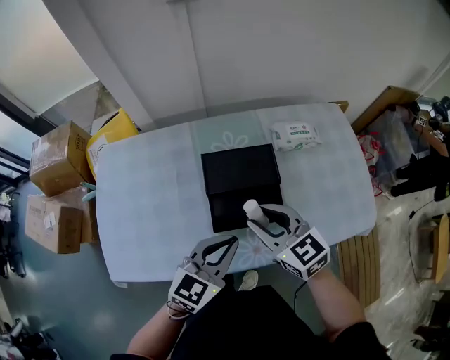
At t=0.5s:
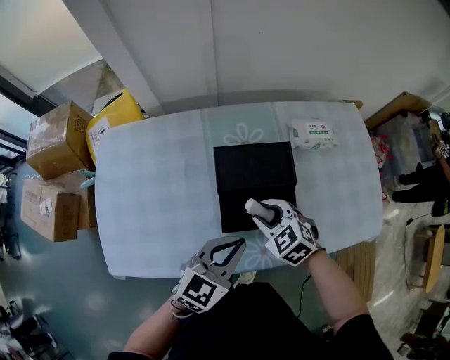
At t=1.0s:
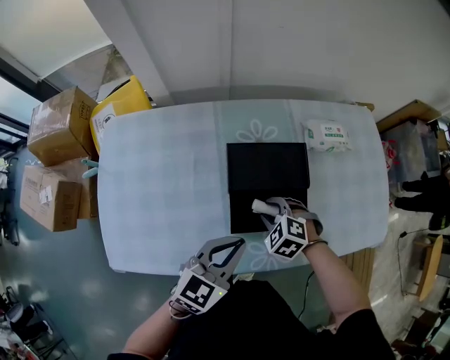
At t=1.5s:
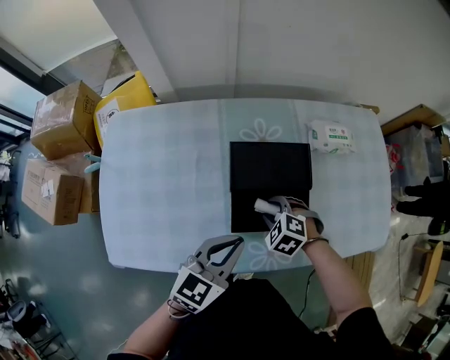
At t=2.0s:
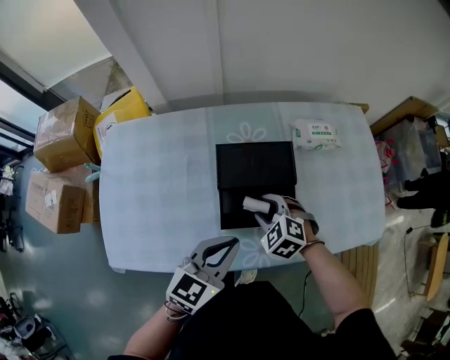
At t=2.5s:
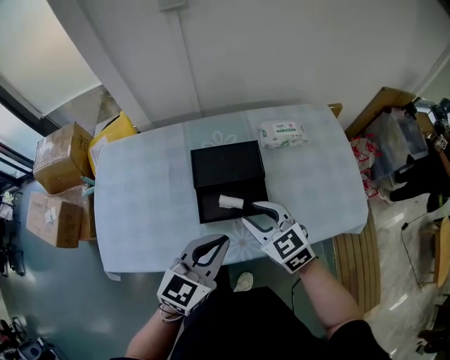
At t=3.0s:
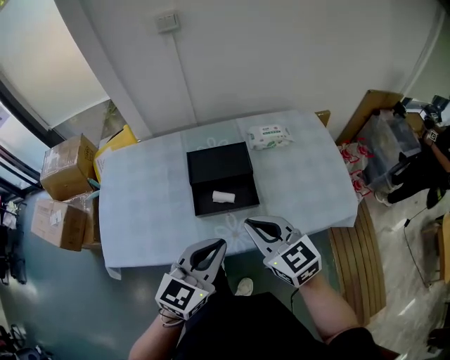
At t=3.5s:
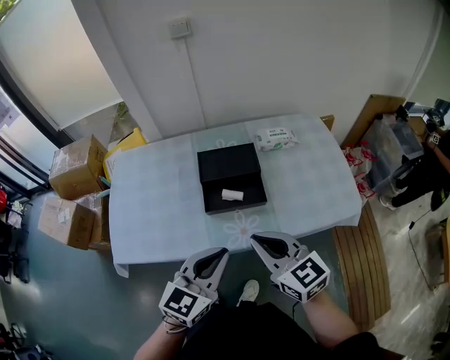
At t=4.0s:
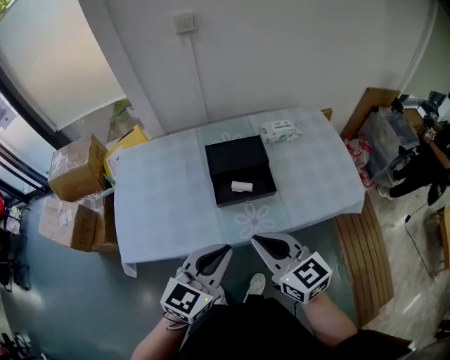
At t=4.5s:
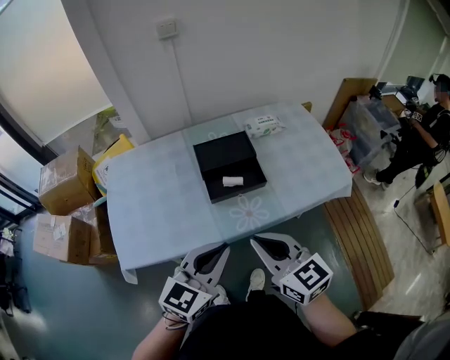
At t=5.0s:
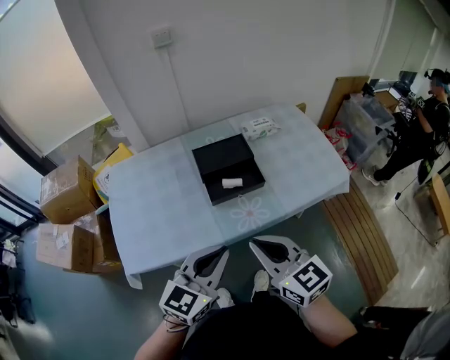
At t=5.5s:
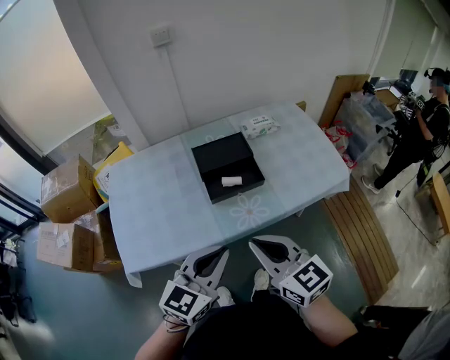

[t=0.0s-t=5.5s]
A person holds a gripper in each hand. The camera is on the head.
t=0.0s to t=2.0s: The right gripper heads downward, covering roughly 15 cm, and points its fingers about 30 degrees further downward.
t=2.0s to t=3.5s: The right gripper travels upward and backward by about 30 cm, tips its fingers upward by approximately 40 degrees, and closes its fingers. The left gripper goes approximately 20 cm backward and upward.
t=3.5s to t=5.5s: The grippers both shift backward and to the left by about 10 cm.

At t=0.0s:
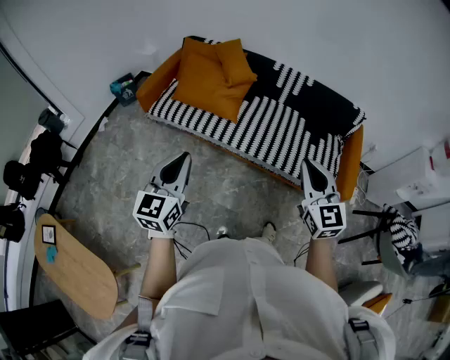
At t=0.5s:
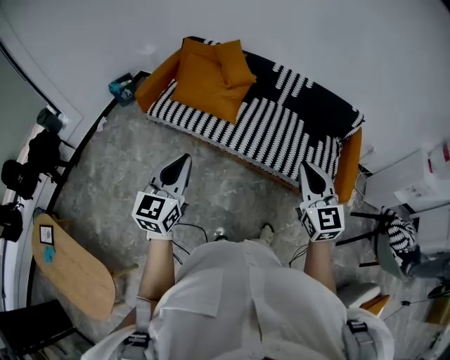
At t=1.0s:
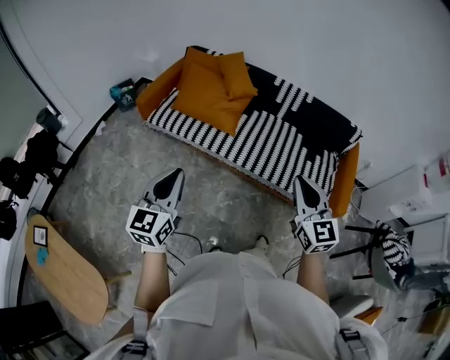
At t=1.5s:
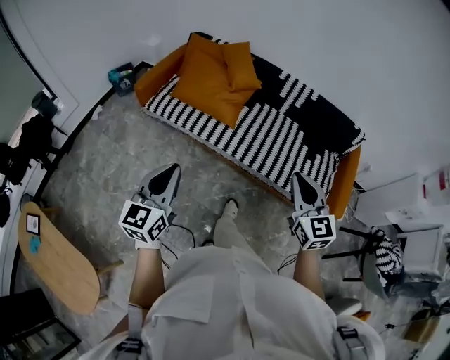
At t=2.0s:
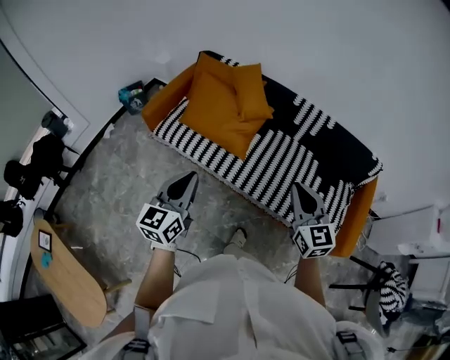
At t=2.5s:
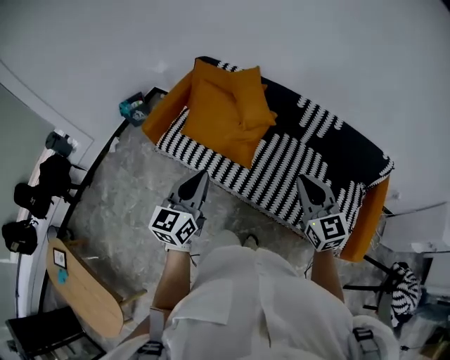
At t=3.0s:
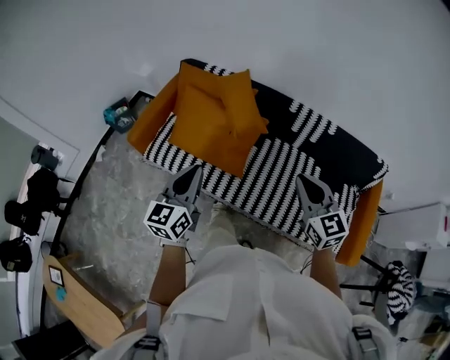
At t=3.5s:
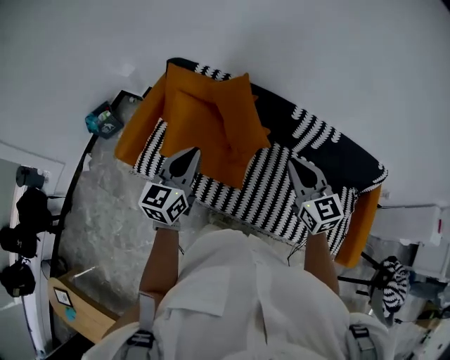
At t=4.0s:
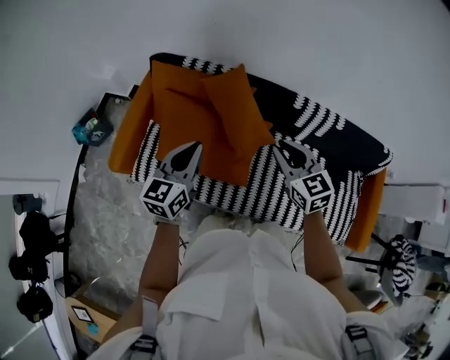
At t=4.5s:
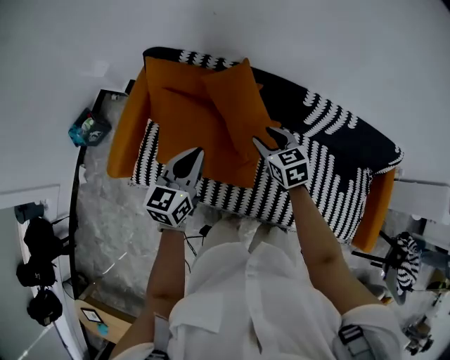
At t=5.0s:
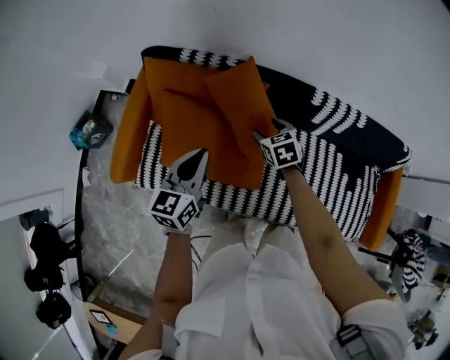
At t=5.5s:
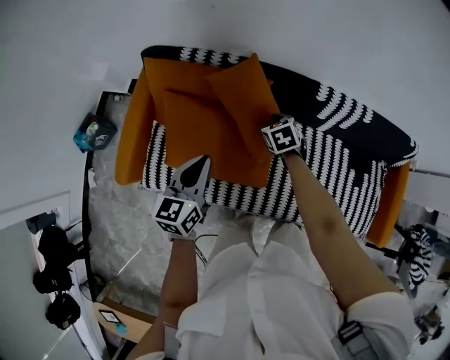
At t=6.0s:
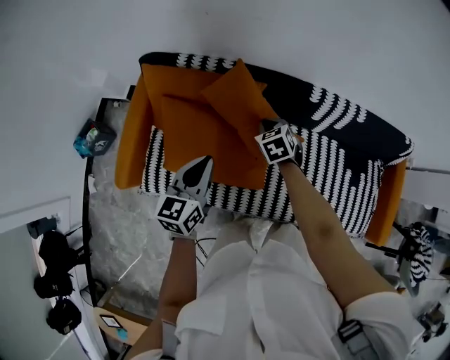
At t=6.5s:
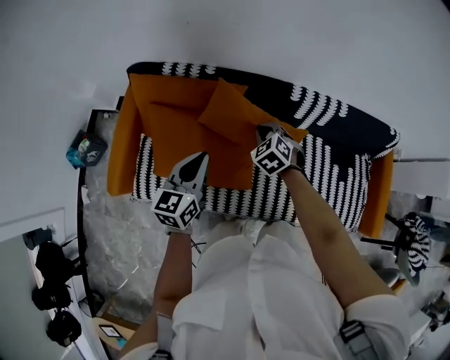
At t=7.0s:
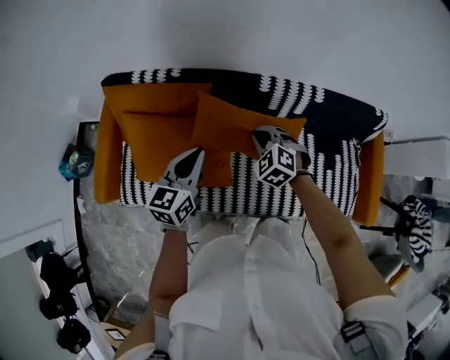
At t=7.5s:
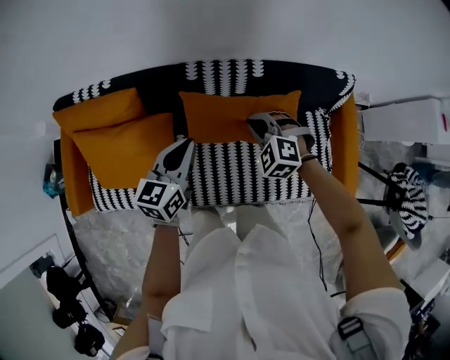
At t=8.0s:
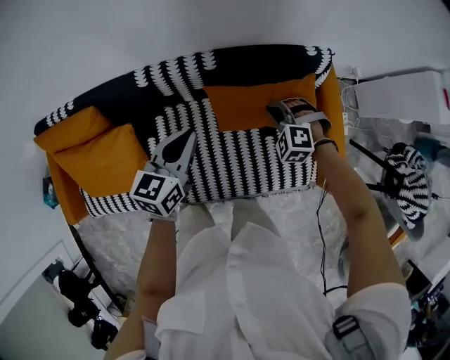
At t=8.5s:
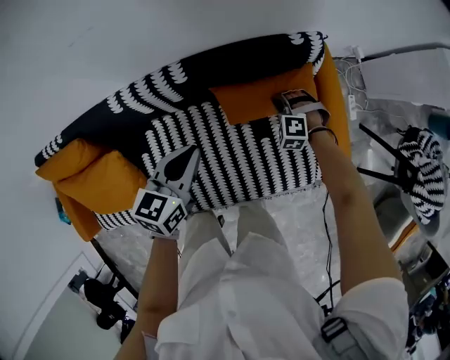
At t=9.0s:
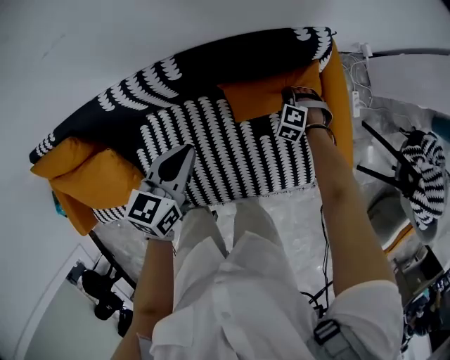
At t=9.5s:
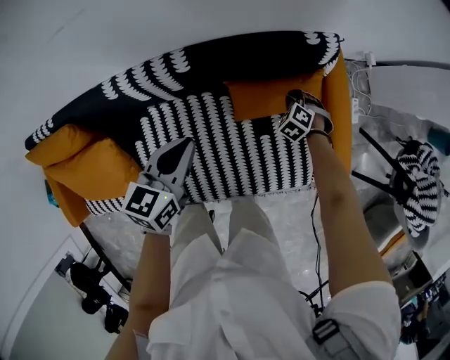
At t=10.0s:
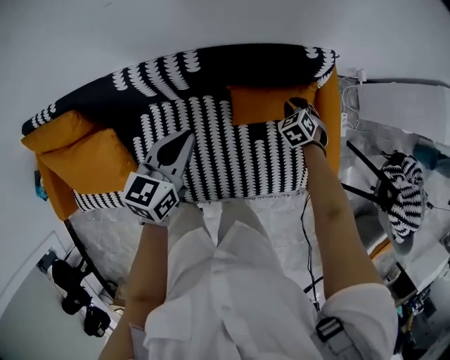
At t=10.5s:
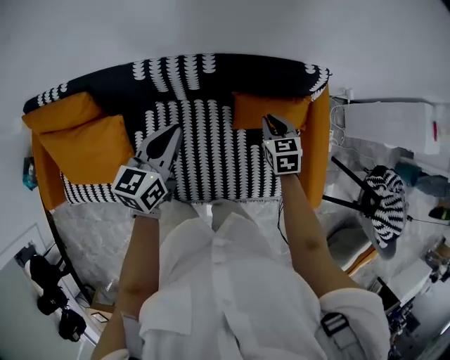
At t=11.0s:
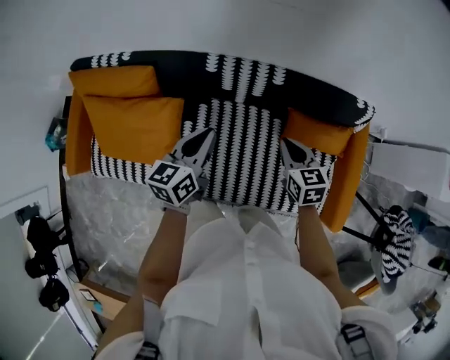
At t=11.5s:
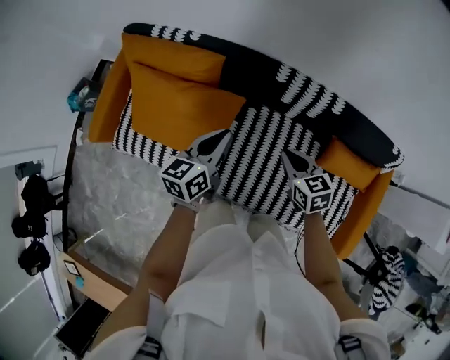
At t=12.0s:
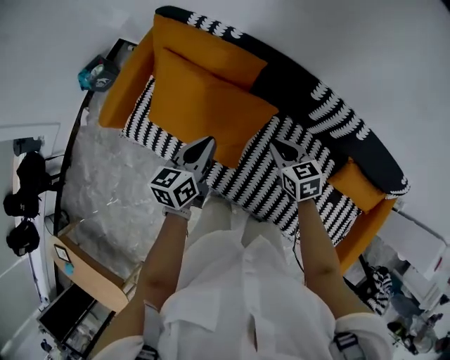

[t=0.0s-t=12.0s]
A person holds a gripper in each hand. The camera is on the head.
t=0.0s to t=2.0s: Both grippers travel together forward, approximately 20 cm.
t=2.0s to t=4.0s: The two grippers travel together, forward, roughly 40 cm.
t=4.0s to t=6.0s: The left gripper moves downward and forward, some 10 cm, while the right gripper shifts about 25 cm downward and forward, tips its fingers downward by approximately 30 degrees, and opens, then closes once more.
t=6.0s to t=8.0s: The pair of grippers is taken to the right, approximately 60 cm. The right gripper rotates around the line of its fingers by some 40 degrees, counterclockwise from behind; the left gripper changes its angle by roughly 20 degrees.
t=8.0s to t=10.0s: The left gripper moves forward, approximately 5 cm. The right gripper is displaced downward, to the right and forward by some 20 cm, and twists approximately 40 degrees clockwise, seen from behind.
t=10.0s to t=12.0s: The two grippers travel together, about 50 cm. The right gripper swivels approximately 50 degrees, while the left gripper changes its angle by approximately 40 degrees.

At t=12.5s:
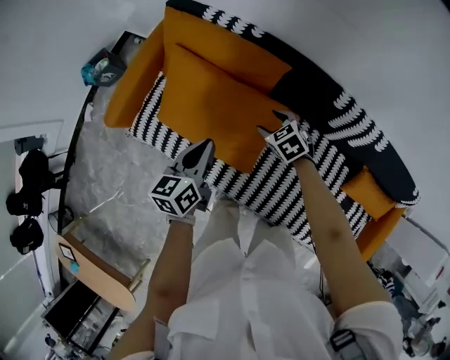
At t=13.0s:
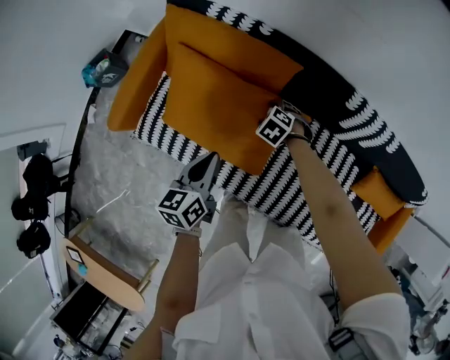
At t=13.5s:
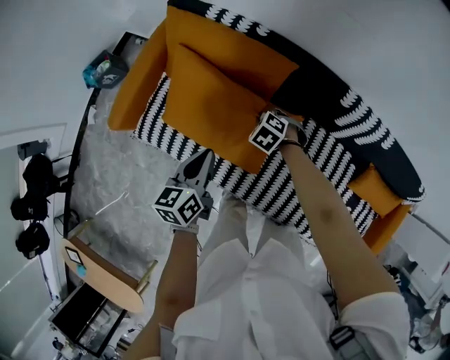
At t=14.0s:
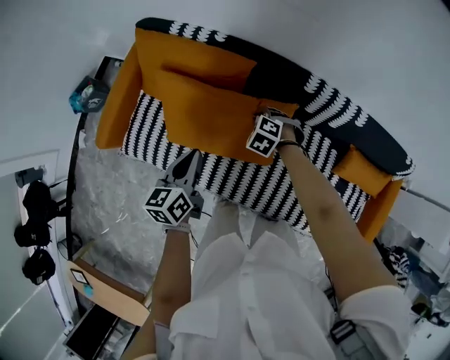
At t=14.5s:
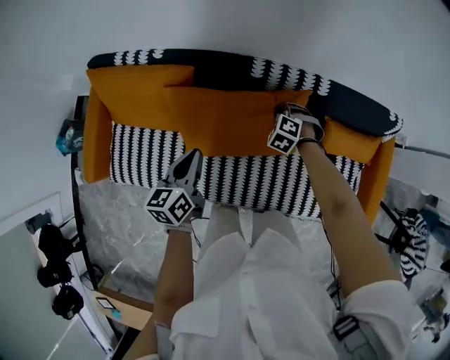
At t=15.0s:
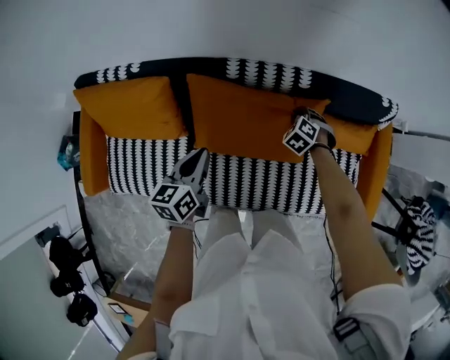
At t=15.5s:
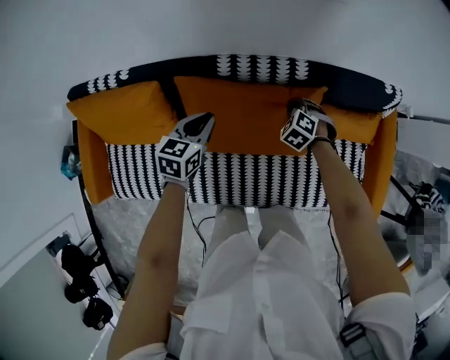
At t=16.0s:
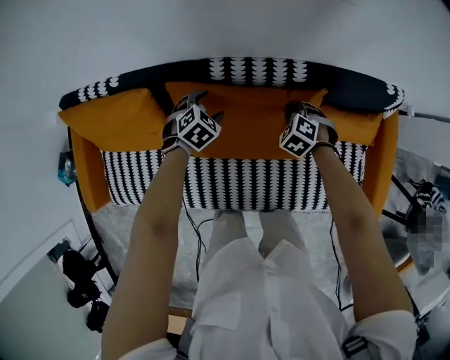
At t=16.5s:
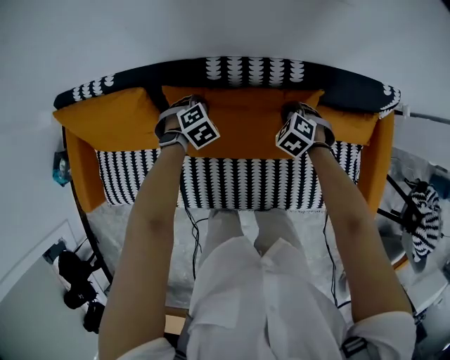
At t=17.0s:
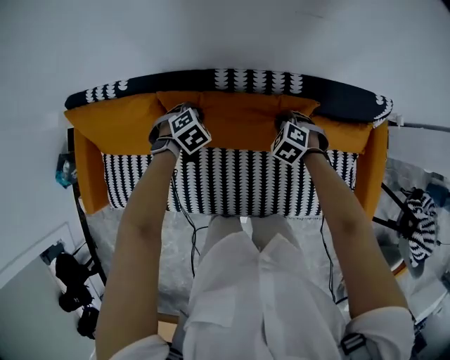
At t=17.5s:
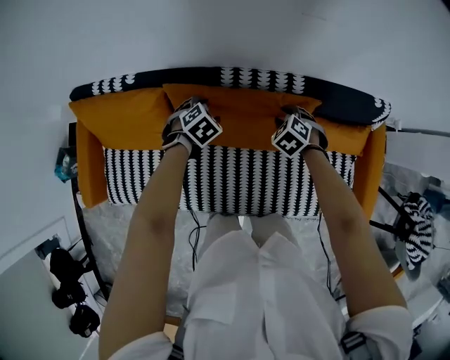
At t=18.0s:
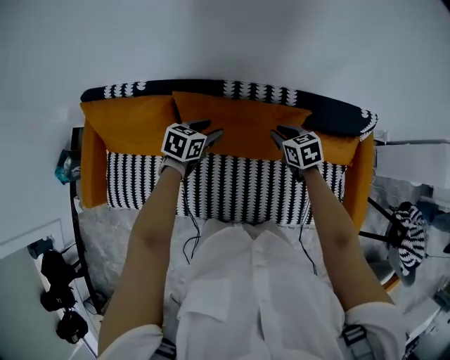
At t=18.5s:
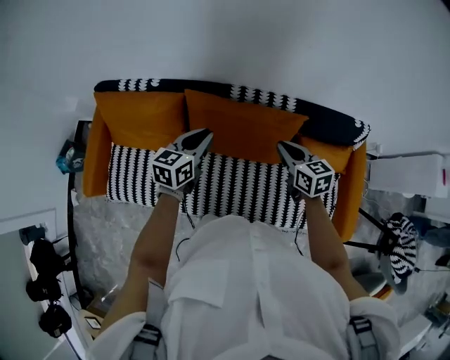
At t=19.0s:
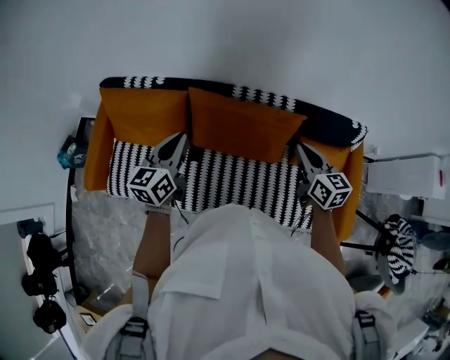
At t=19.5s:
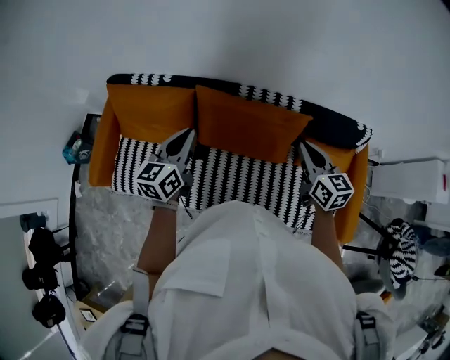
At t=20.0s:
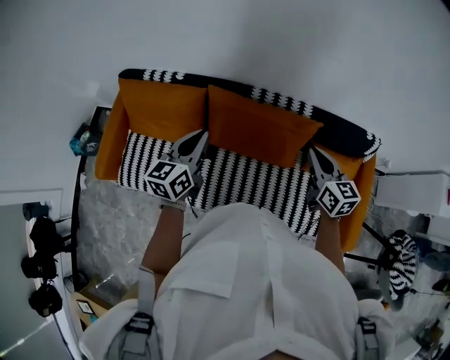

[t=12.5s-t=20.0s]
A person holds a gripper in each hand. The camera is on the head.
t=12.5s to t=14.5s: The left gripper moves roughly 15 cm; the right gripper reaches approximately 10 cm downward, then returns, swivels roughly 30 degrees, and closes up.
t=14.5s to t=16.5s: The left gripper ends up approximately 30 cm from where it was, rotates around the line of its fingers by approximately 80 degrees, clockwise from behind, and opens, then closes again. The right gripper ends up about 15 cm from where it was.
t=16.5s to t=18.0s: Both grippers move upward, about 15 cm. The right gripper rotates some 40 degrees. The left gripper tilts its fingers approximately 30 degrees upward, and opens its fingers.
t=18.0s to t=20.0s: The left gripper travels upward, backward and to the left by approximately 25 cm, tilts its fingers roughly 30 degrees upward, and closes its fingers. Meanwhile the right gripper shifts approximately 20 cm upward and backward, and tips its fingers upward by about 30 degrees.

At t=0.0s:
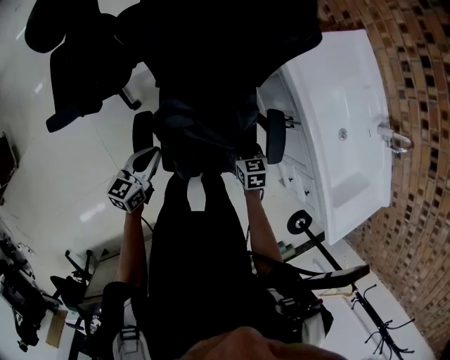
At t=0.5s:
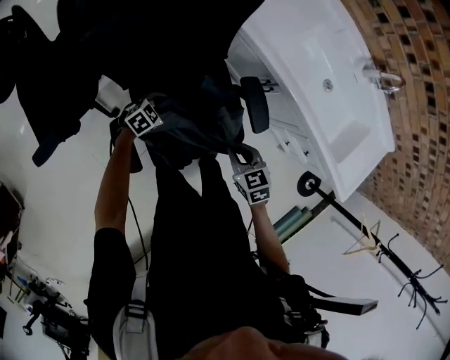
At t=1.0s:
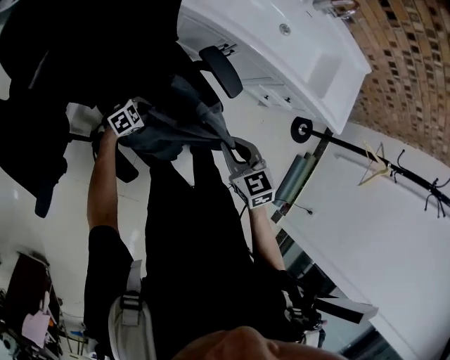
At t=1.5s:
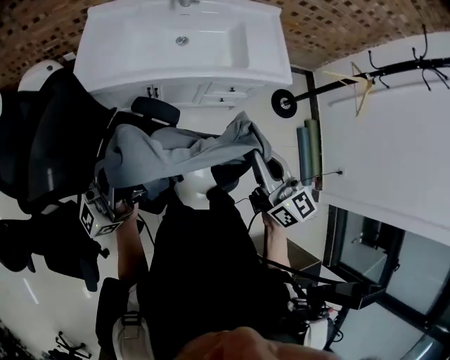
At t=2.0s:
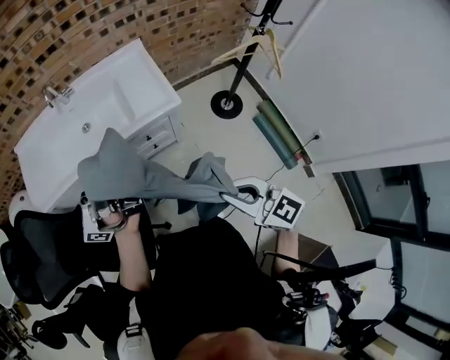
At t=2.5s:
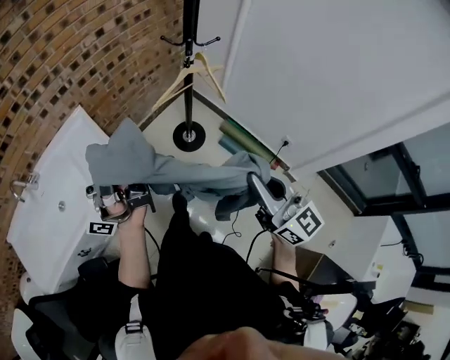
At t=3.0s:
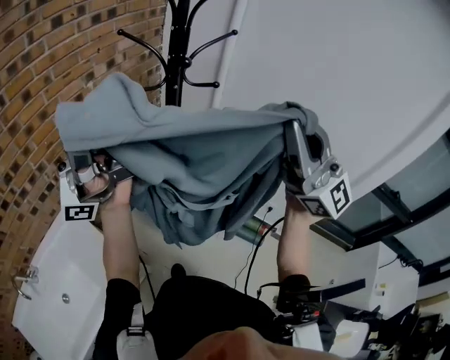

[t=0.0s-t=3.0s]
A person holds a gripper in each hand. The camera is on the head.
t=0.0s to t=1.5s: Both grippers travel together upward, roughly 35 cm. The left gripper points its fingers about 70 degrees further upward, and opens, then closes once more. The right gripper tilts its fingers about 40 degrees upward.
t=1.5s to t=3.0s: The pair of grippers is taken approximately 80 cm. The right gripper tips its fingers upward by about 40 degrees, while the left gripper tilts its fingers approximately 30 degrees upward.
